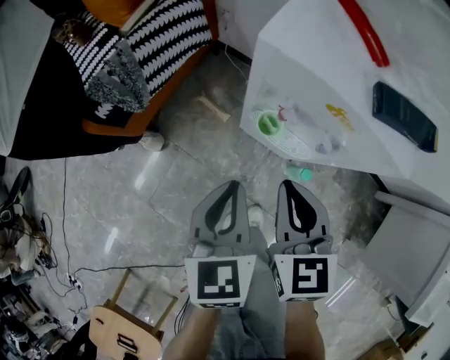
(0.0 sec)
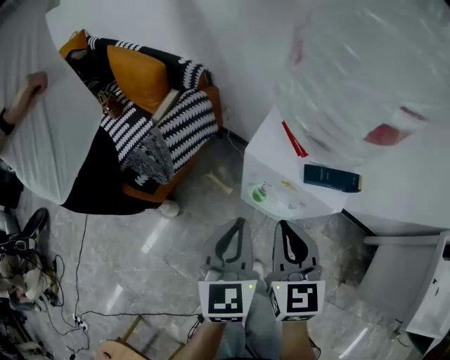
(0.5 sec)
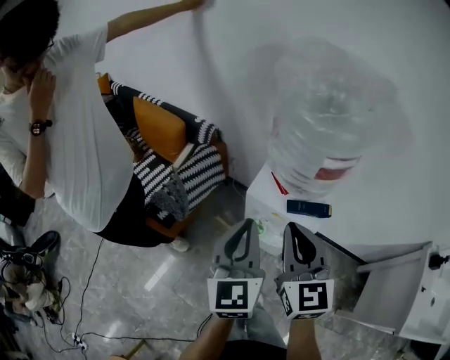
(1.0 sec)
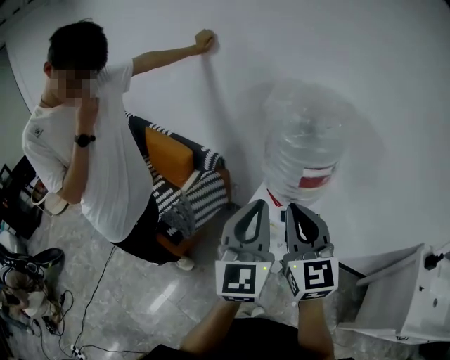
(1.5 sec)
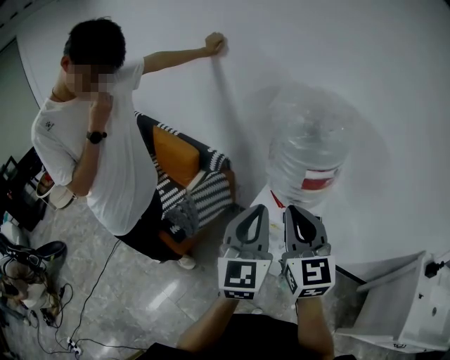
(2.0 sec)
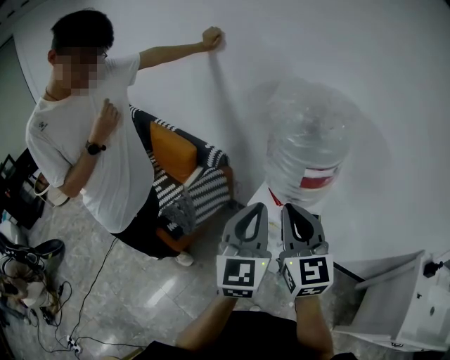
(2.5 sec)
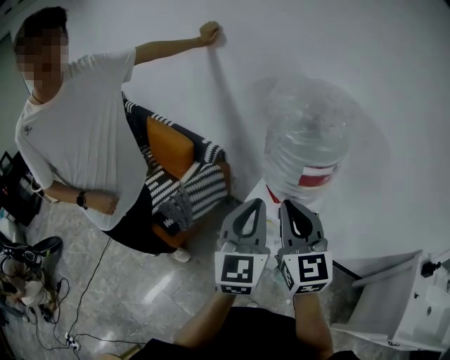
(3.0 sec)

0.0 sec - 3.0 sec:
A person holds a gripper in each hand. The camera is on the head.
0.0 sec - 1.5 sec: Both grippers move upward, about 50 cm. The left gripper tips its fingers upward by approximately 40 degrees, while the right gripper points its fingers about 40 degrees further upward.
1.5 sec - 3.0 sec: There are only small adjustments of the grippers.

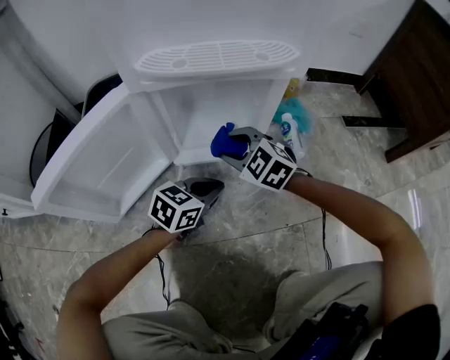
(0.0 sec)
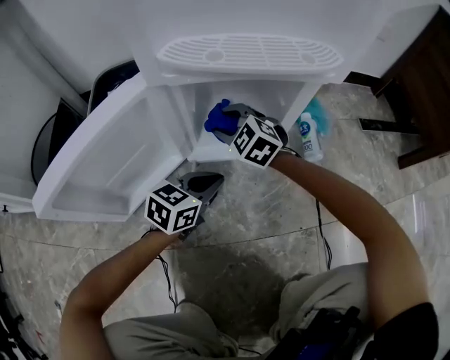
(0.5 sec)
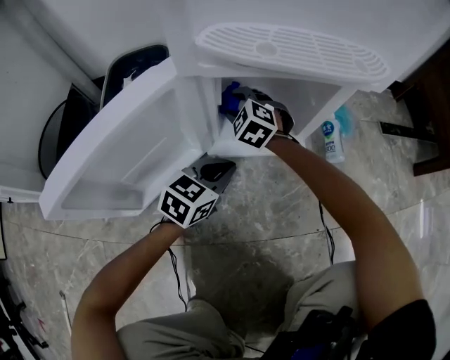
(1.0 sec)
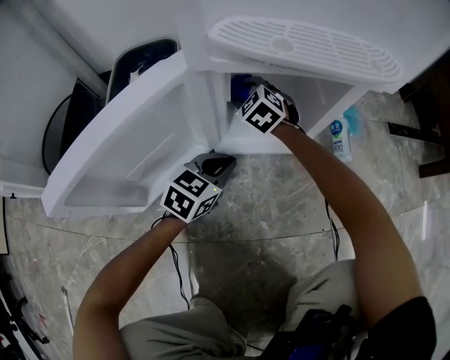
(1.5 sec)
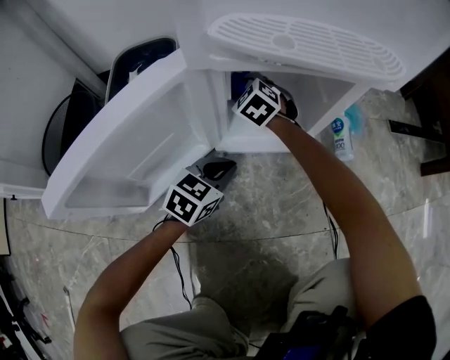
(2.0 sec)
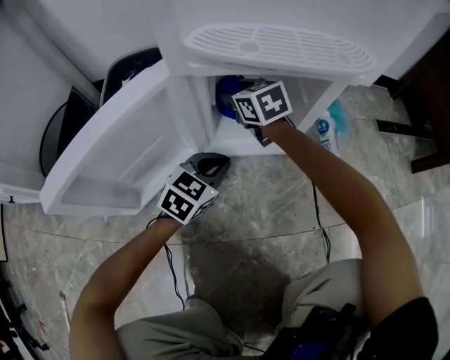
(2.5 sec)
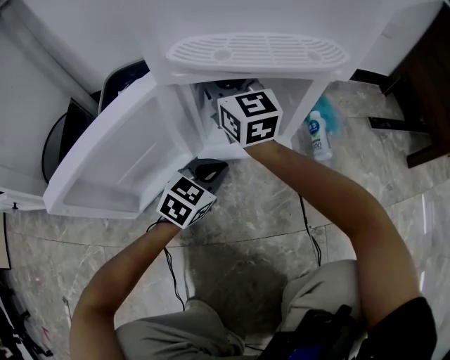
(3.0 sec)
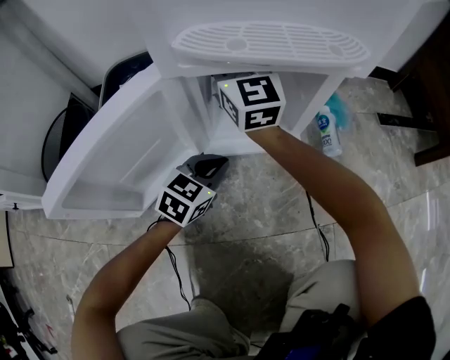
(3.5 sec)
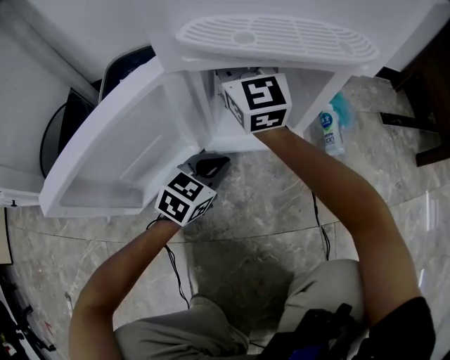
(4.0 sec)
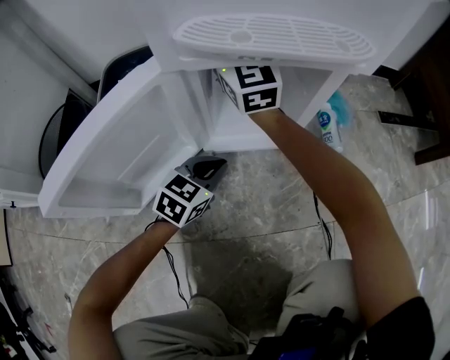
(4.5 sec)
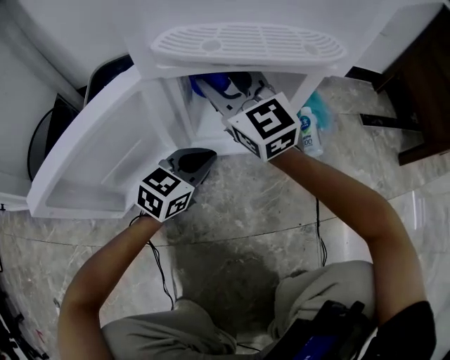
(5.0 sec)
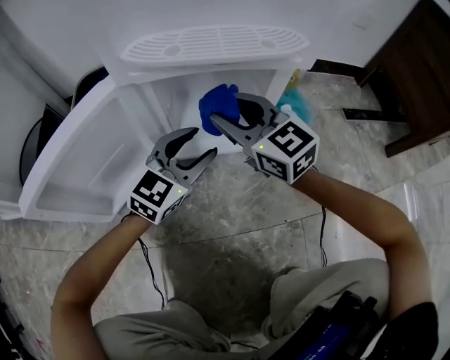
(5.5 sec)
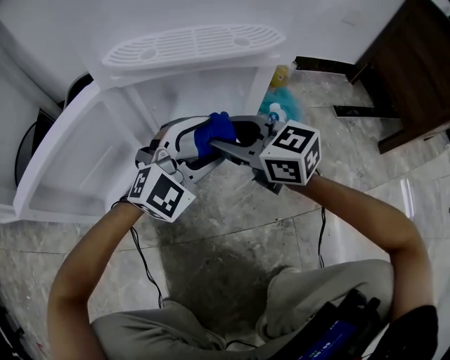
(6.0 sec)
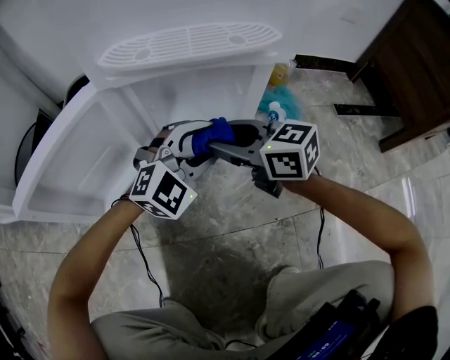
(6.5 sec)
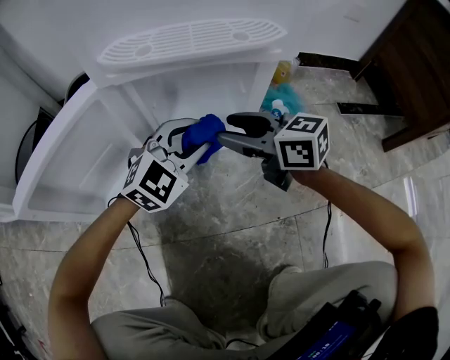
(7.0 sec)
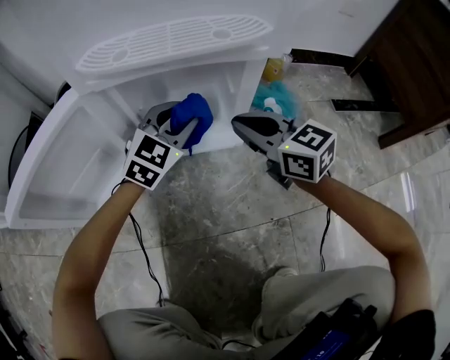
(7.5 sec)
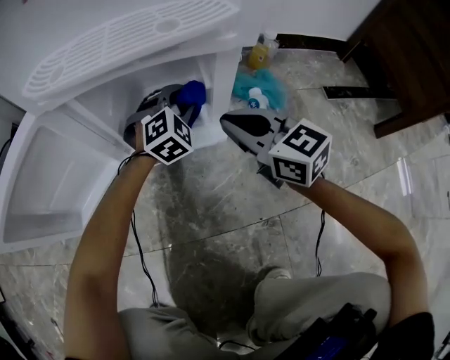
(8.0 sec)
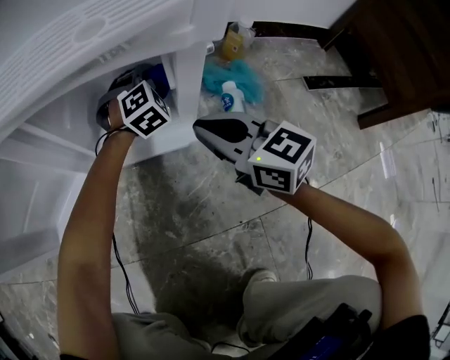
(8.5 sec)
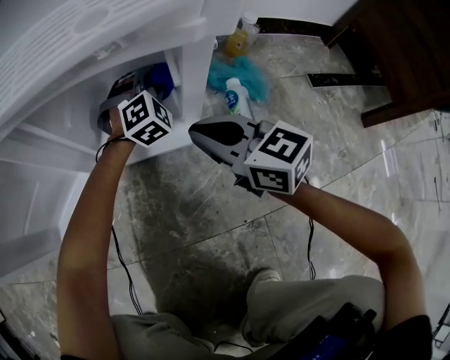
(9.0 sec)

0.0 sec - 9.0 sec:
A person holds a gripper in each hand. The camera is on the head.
0.0 sec - 2.0 sec: The right gripper heads forward, to the left and downward, covering some 20 cm. The left gripper shifts some 10 cm to the left.
2.0 sec - 4.5 sec: The right gripper heads upward, covering approximately 25 cm, and angles its fingers upward, by about 50 degrees.
4.5 sec - 7.0 sec: The right gripper shifts about 25 cm backward, to the right and downward, and swivels some 50 degrees; the left gripper shifts approximately 15 cm upward and to the right, swivels approximately 40 degrees, and opens up.
7.0 sec - 9.0 sec: The right gripper goes approximately 10 cm to the right and downward, and closes up. The left gripper goes some 25 cm forward, downward and to the right, and changes its angle by about 30 degrees.

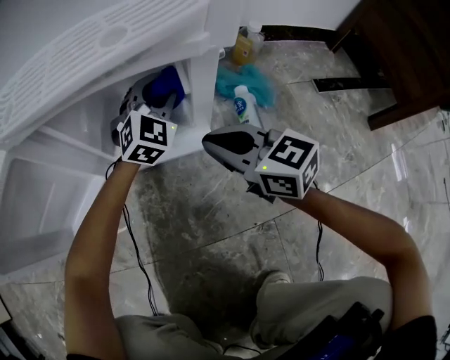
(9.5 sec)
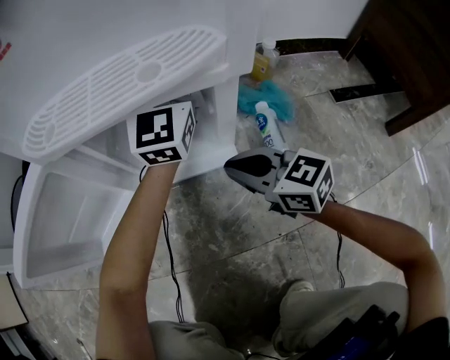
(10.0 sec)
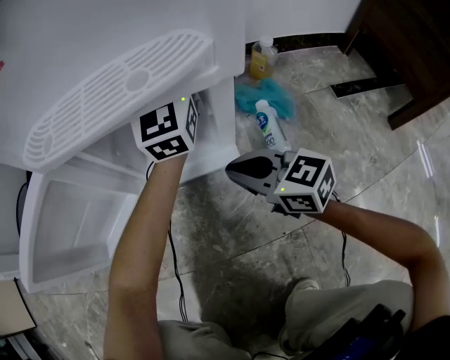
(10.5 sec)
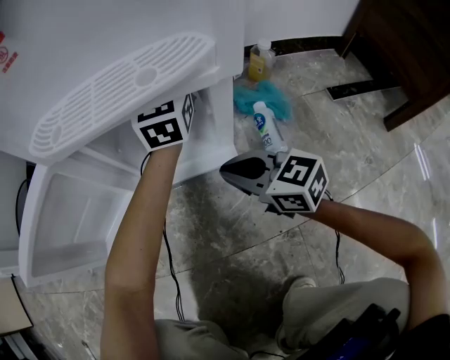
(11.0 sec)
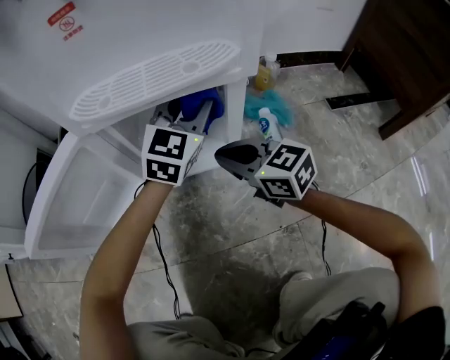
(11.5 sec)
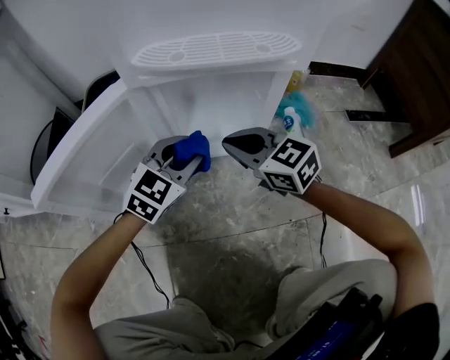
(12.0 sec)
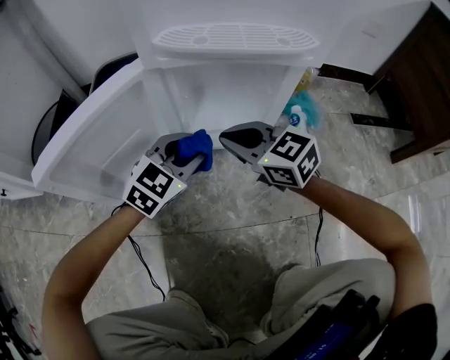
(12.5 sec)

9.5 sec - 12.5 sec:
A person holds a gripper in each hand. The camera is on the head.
9.5 sec - 11.0 sec: The left gripper goes about 15 cm upward, and swivels about 40 degrees.
11.0 sec - 12.5 sec: The right gripper heads to the left, covering approximately 10 cm, while the left gripper shifts some 30 cm backward, to the left and downward, and tilts its fingers approximately 30 degrees downward.

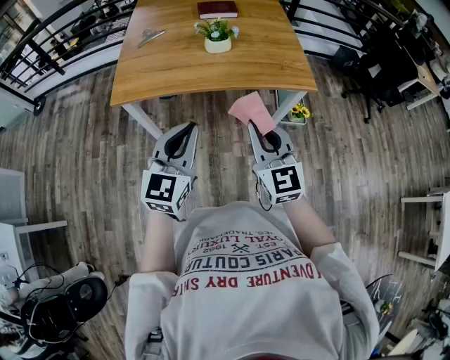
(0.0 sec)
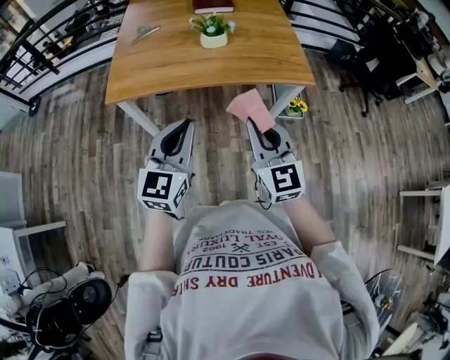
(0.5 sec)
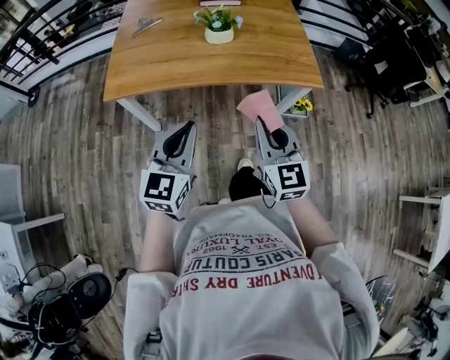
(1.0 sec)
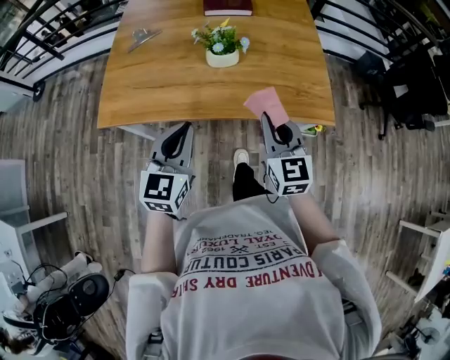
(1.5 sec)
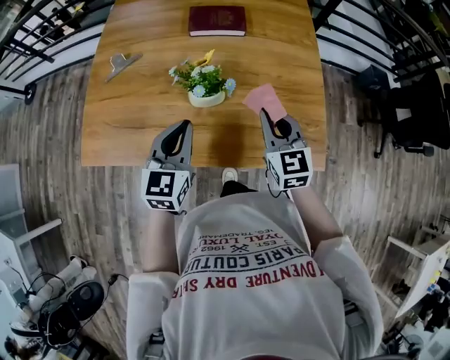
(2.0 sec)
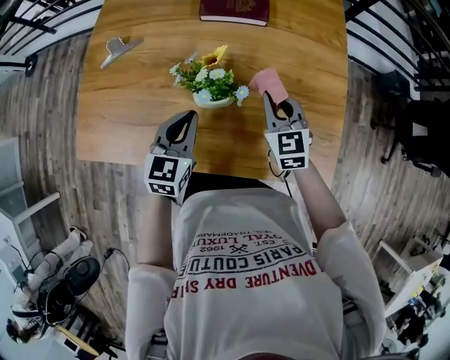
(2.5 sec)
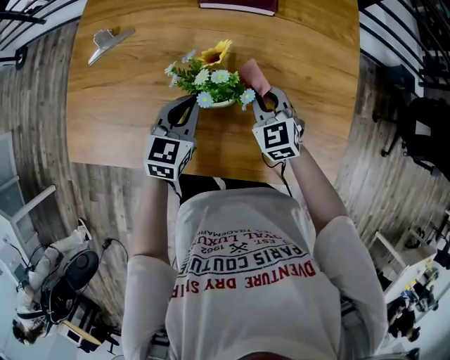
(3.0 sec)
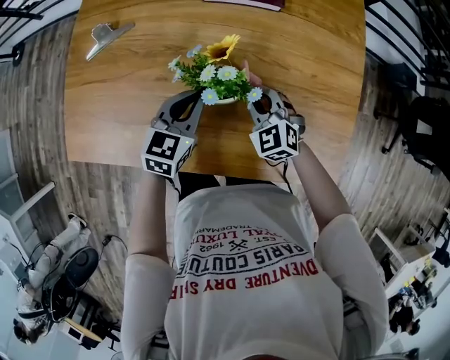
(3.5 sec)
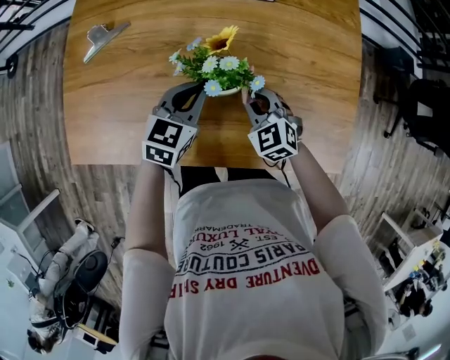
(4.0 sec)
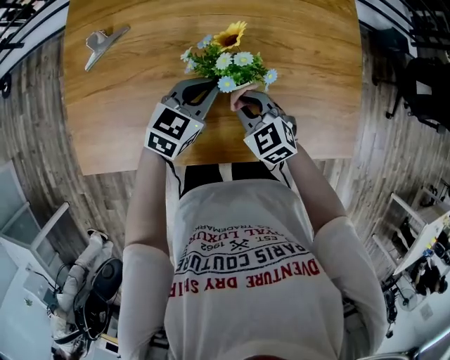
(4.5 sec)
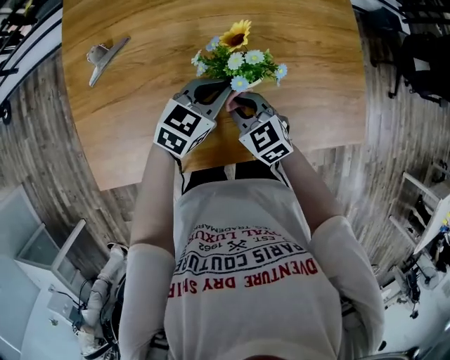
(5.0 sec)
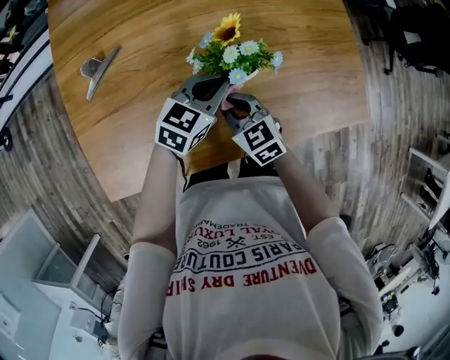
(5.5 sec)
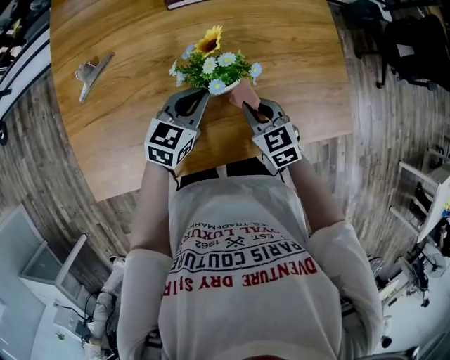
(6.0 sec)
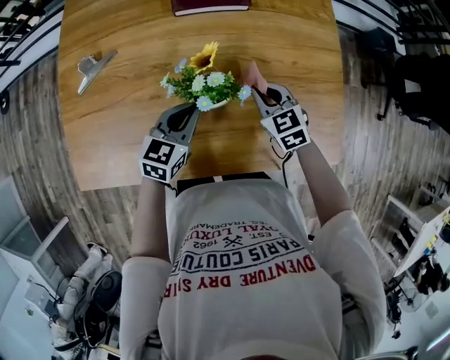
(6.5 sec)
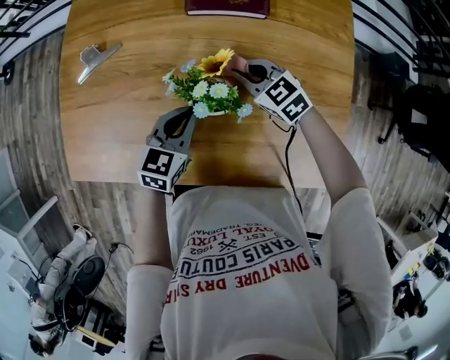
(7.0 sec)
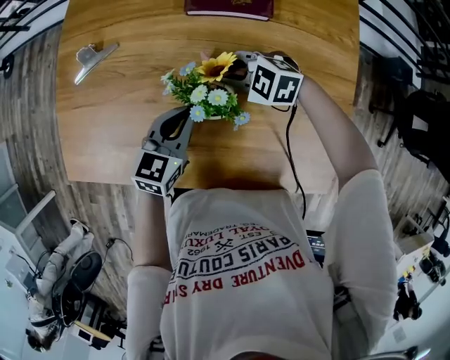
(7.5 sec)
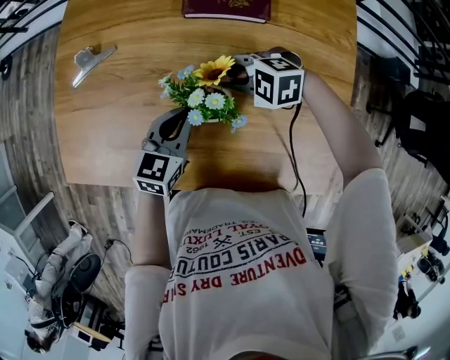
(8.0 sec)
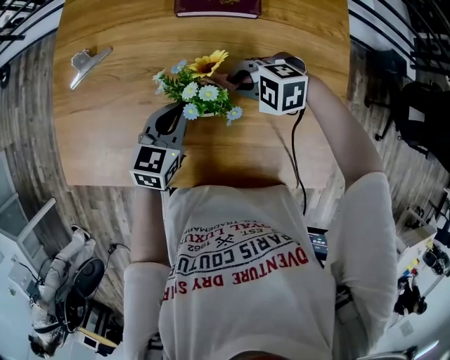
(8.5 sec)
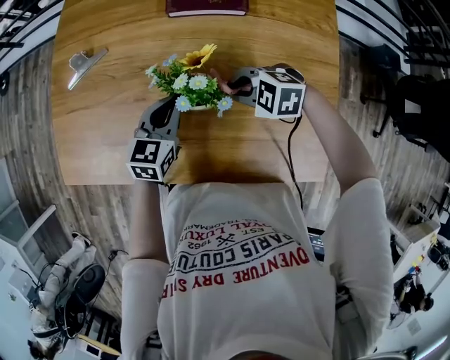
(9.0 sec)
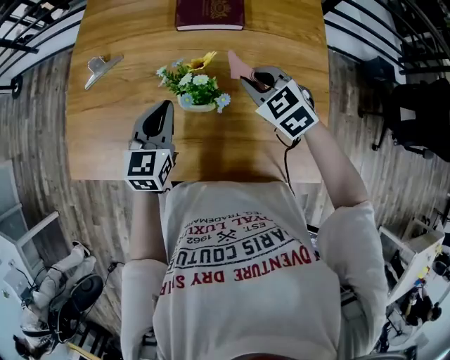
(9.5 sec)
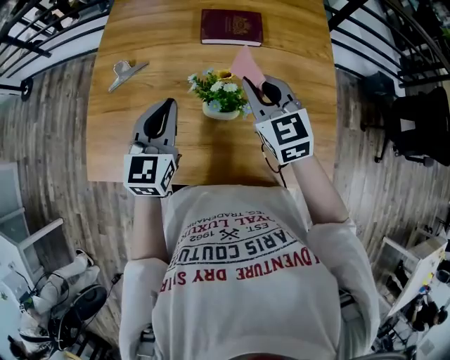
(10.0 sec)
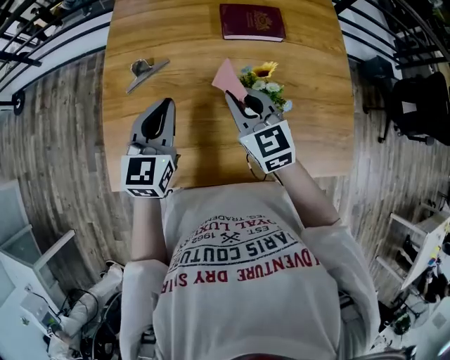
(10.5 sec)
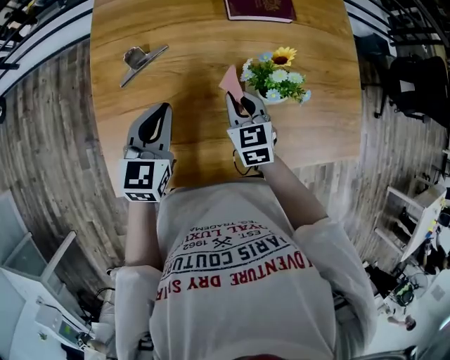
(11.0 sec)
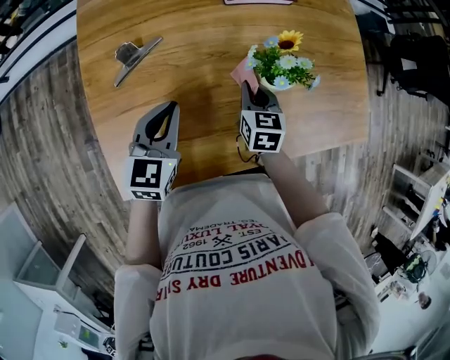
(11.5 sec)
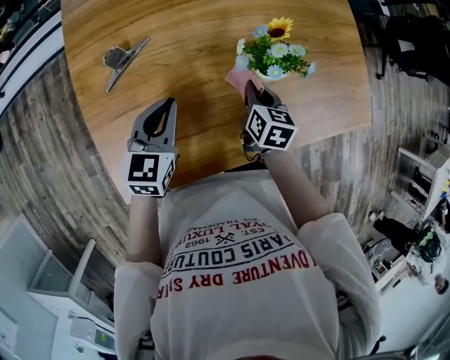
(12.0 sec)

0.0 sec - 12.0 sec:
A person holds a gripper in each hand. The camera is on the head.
0.0 sec - 2.0 sec: Both grippers move forward, about 40 cm.
2.0 sec - 4.0 sec: The right gripper goes about 20 cm downward and to the left, and rotates about 30 degrees. The left gripper goes approximately 15 cm downward and forward, and rotates some 20 degrees.
4.0 sec - 6.0 sec: The right gripper goes to the left and returns, approximately 10 cm each way, and changes its angle by about 30 degrees.
6.0 sec - 8.0 sec: The left gripper swivels roughly 30 degrees, while the right gripper shifts by roughly 15 cm, and swivels about 80 degrees.
8.0 sec - 10.0 sec: The grippers both shift upward by some 20 cm. The left gripper rotates about 20 degrees, while the right gripper swivels roughly 70 degrees.
10.0 sec - 12.0 sec: The right gripper shifts about 20 cm downward, and swivels approximately 60 degrees; the left gripper ends up roughly 20 cm from where it was, and rotates some 30 degrees.
